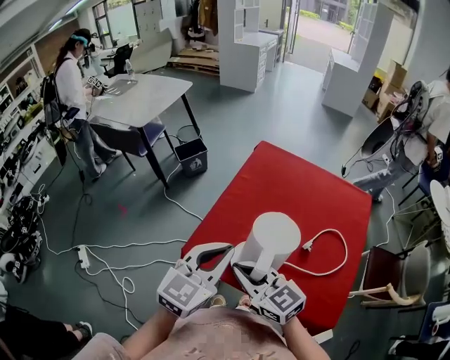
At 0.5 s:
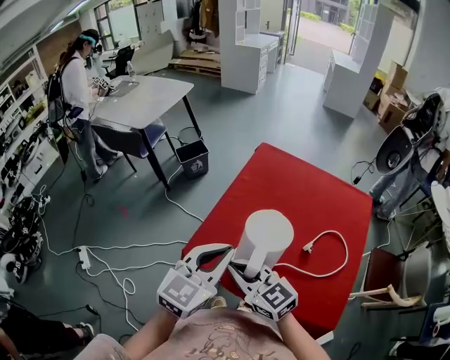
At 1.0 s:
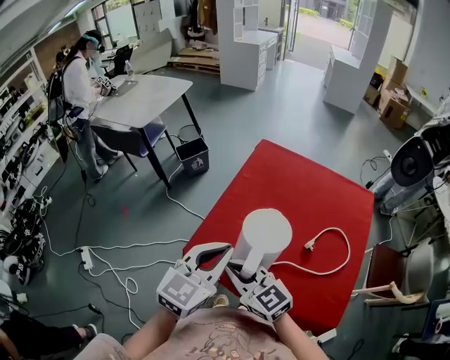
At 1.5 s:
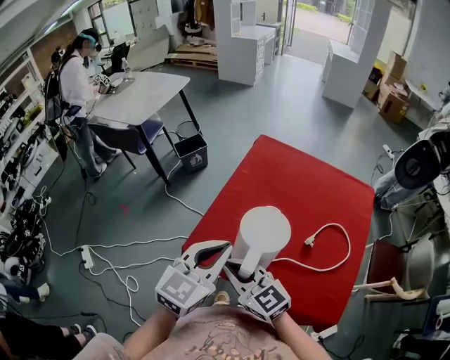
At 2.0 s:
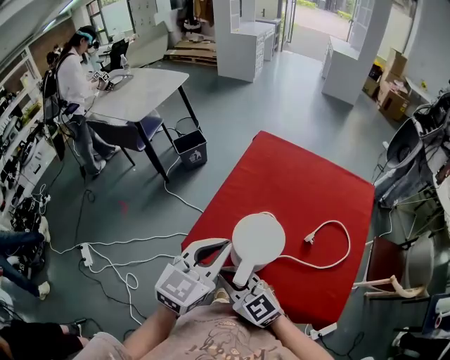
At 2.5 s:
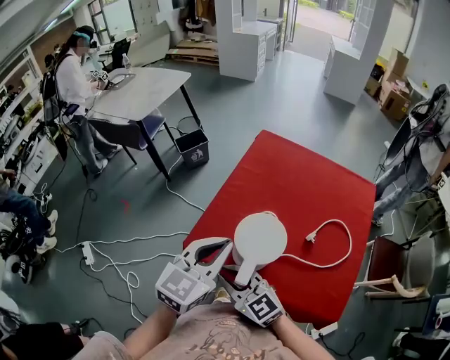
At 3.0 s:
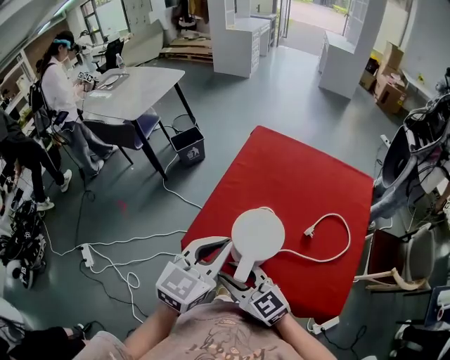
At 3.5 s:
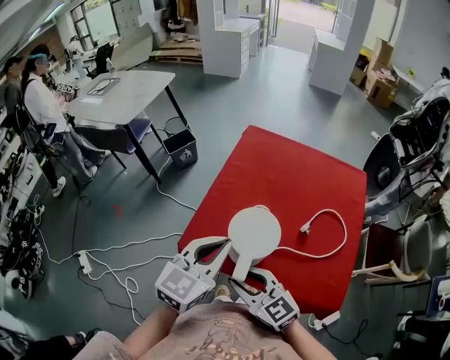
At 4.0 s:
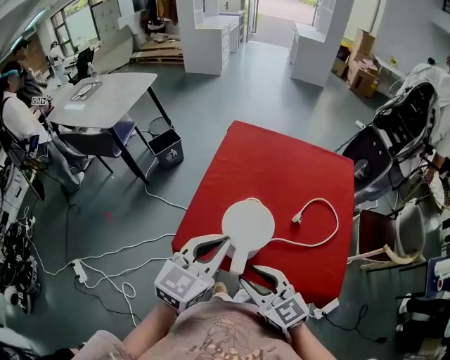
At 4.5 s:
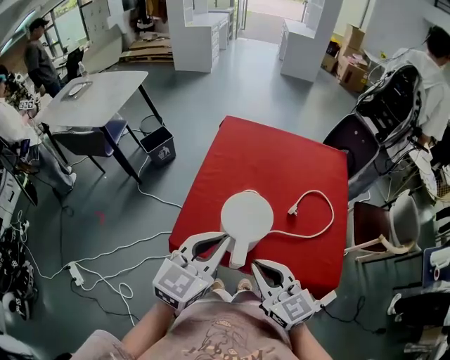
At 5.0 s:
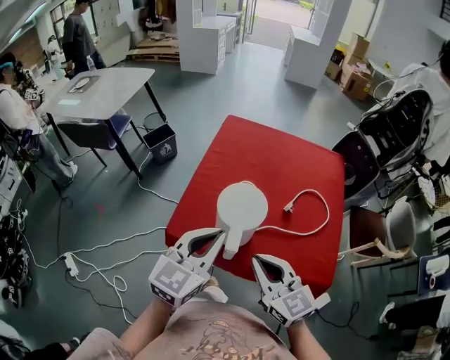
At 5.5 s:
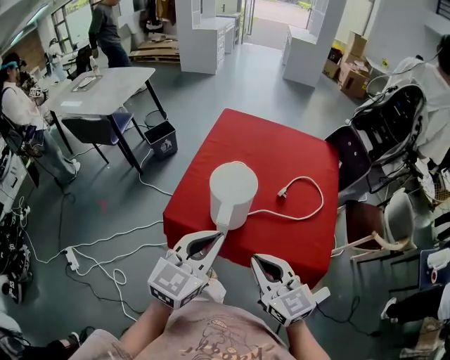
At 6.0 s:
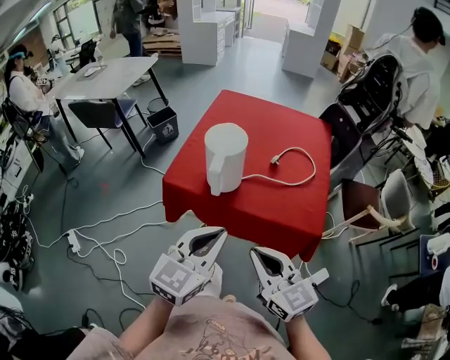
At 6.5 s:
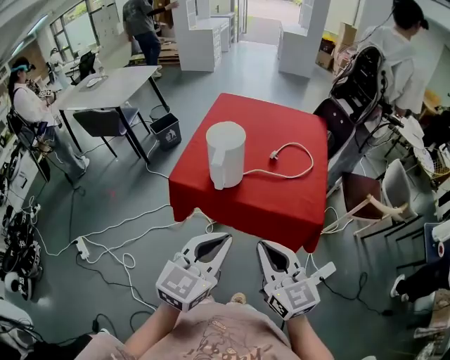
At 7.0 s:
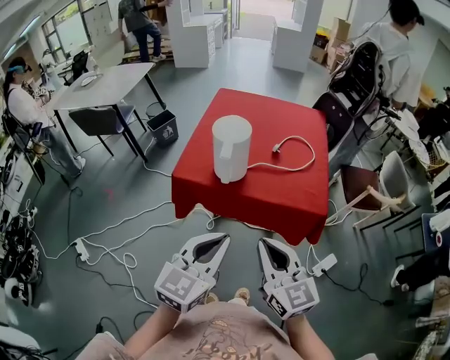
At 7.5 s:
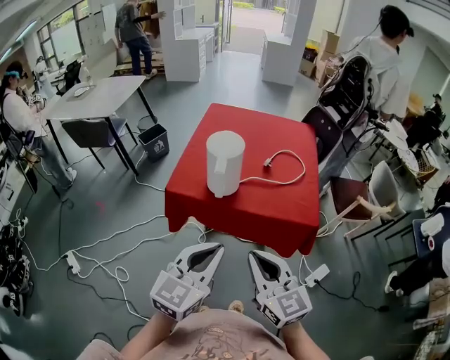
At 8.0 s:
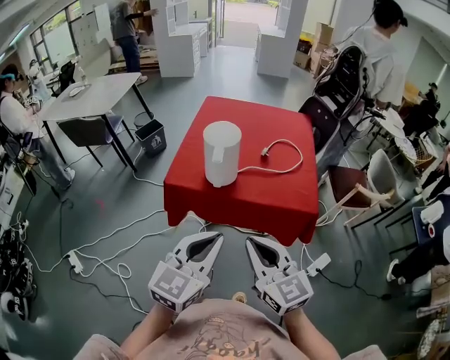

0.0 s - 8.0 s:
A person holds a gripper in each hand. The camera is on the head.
0.0 s - 2.0 s: The right gripper ends up some 5 cm from where it was.
2.0 s - 4.0 s: The right gripper is displaced to the right by approximately 10 cm, swivels about 20 degrees, and opens up.
4.0 s - 6.0 s: The left gripper heads backward, covering approximately 25 cm. The right gripper is displaced backward and to the right by about 20 cm, and closes its fingers.
6.0 s - 8.0 s: Both grippers move backward, about 5 cm.

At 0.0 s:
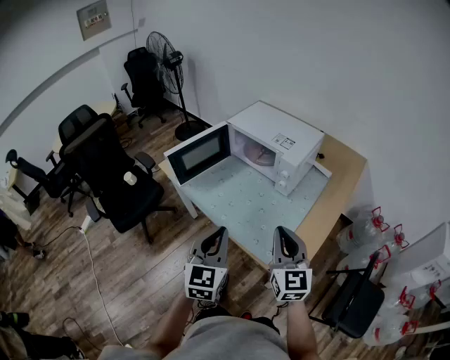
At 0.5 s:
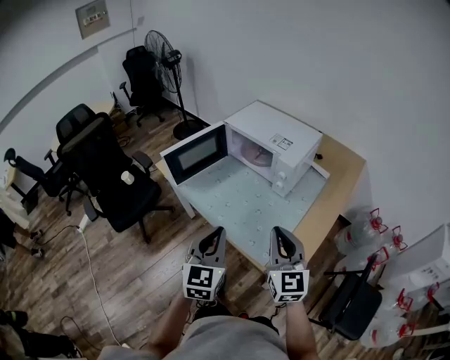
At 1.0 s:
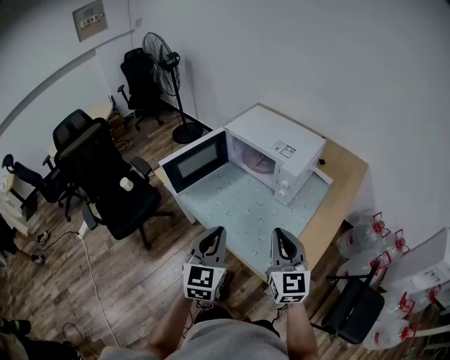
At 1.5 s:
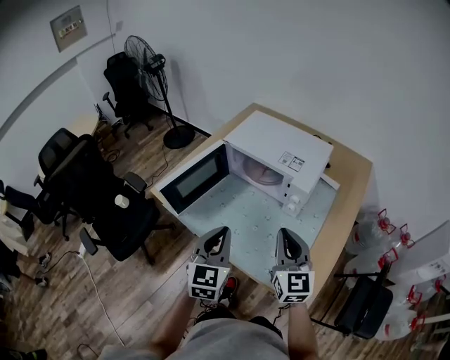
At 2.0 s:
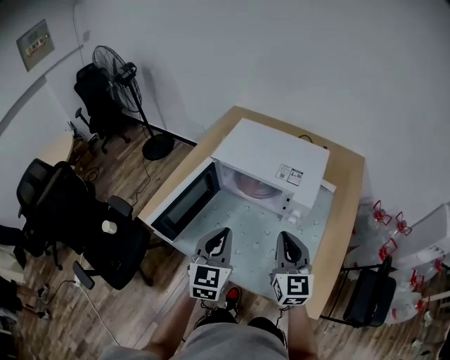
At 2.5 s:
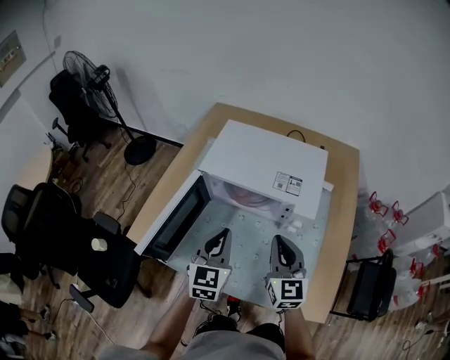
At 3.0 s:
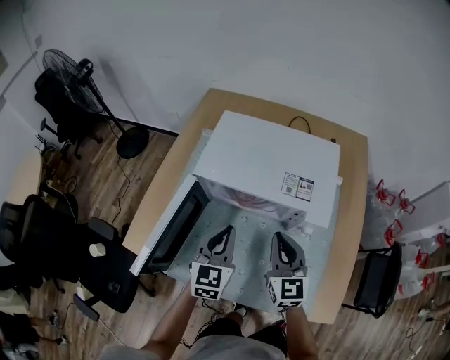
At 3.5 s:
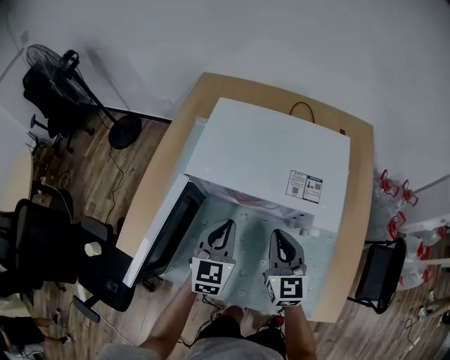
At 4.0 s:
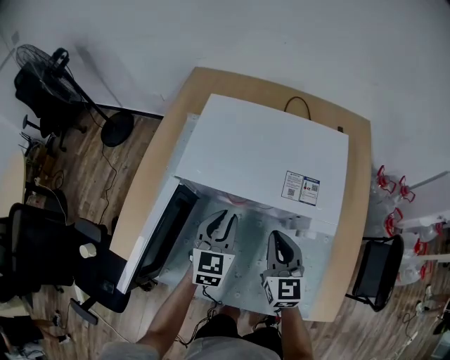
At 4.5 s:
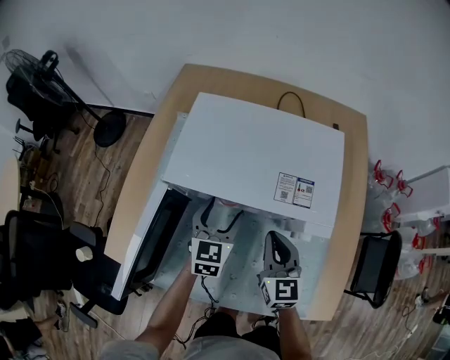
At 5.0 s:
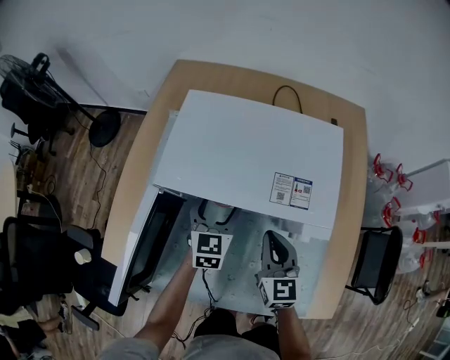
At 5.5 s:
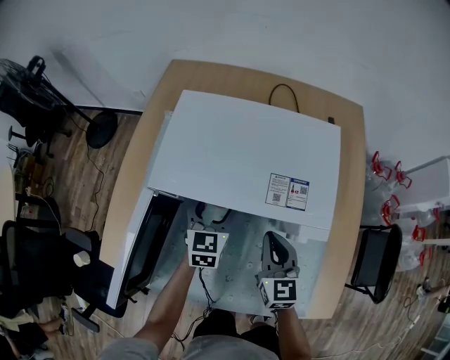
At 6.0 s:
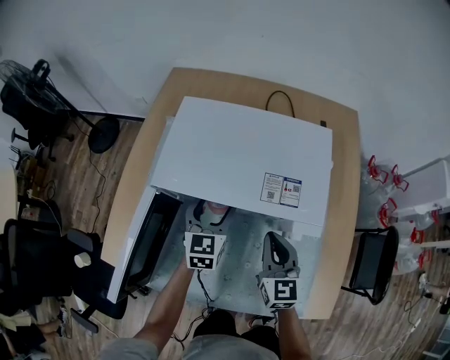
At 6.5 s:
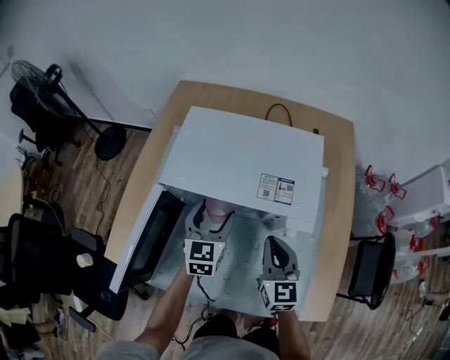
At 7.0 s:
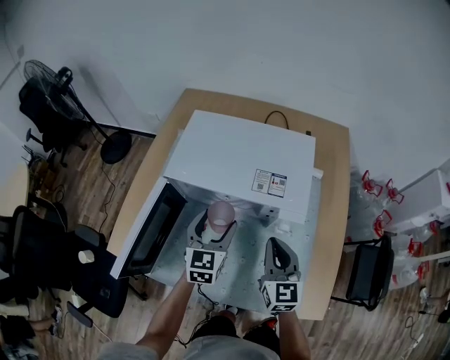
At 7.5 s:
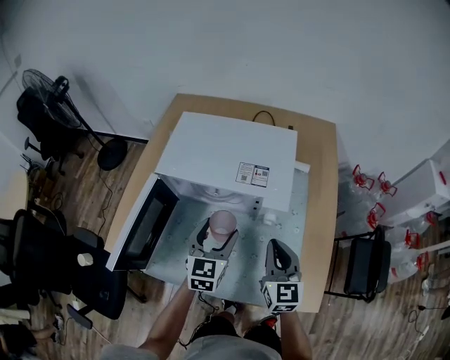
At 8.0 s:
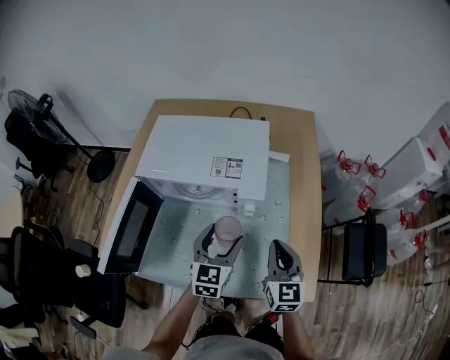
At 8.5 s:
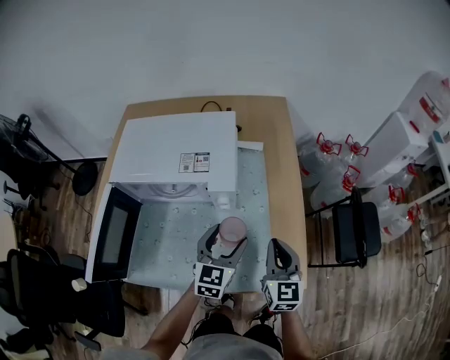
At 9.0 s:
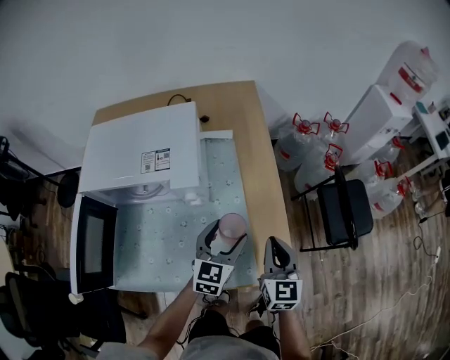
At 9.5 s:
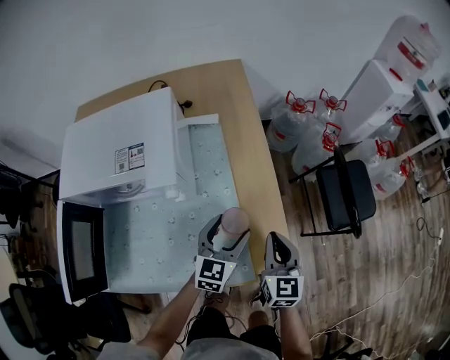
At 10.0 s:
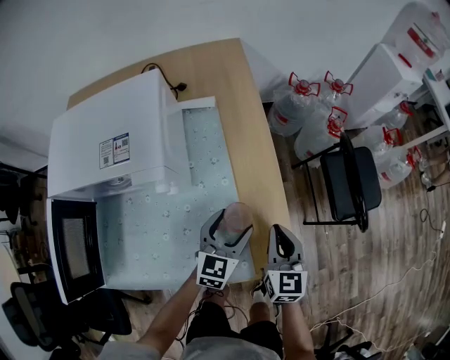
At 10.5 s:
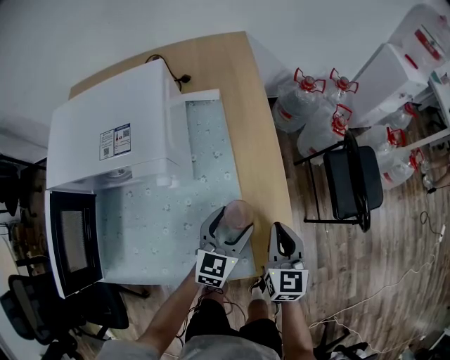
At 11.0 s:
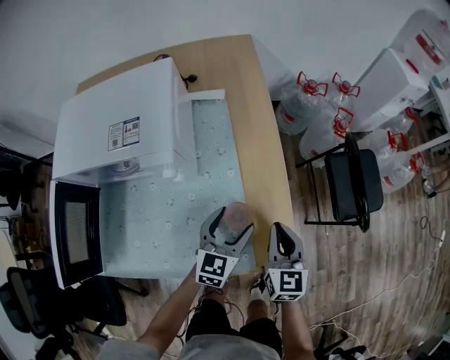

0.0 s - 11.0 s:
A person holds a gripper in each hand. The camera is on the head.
0.0 s - 2.0 s: Both grippers move forward, approximately 25 cm.
2.0 s - 3.5 s: The grippers both shift forward and downward by some 20 cm.
3.5 s - 5.5 s: The right gripper moves downward, roughly 5 cm. Meanwhile the left gripper is displaced forward and downward by about 10 cm, and opens its fingers.
5.5 s - 7.5 s: Both grippers travel together backward, upward and to the right, roughly 15 cm.
7.5 s - 9.0 s: Both grippers move to the right, roughly 25 cm. The left gripper rotates approximately 30 degrees, while the right gripper changes its angle by approximately 20 degrees.
9.0 s - 11.0 s: The two grippers go about 10 cm downward.

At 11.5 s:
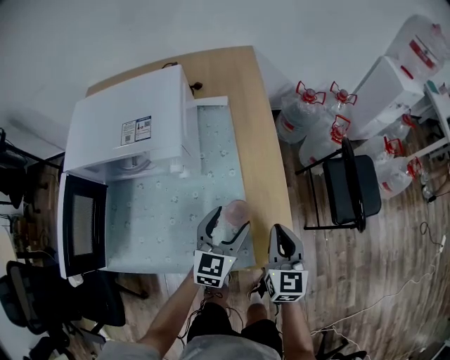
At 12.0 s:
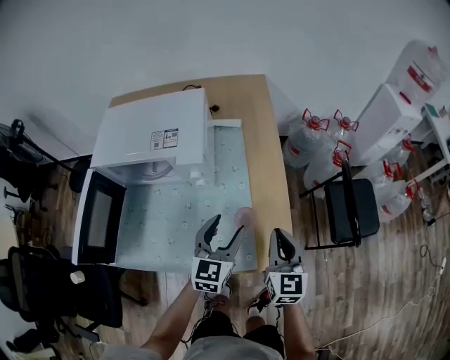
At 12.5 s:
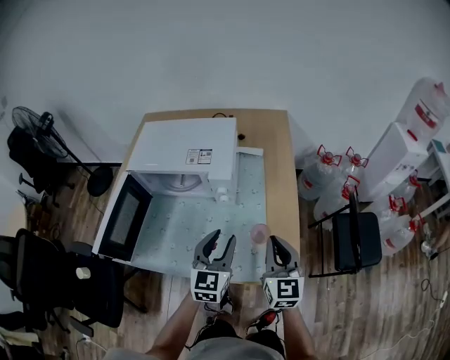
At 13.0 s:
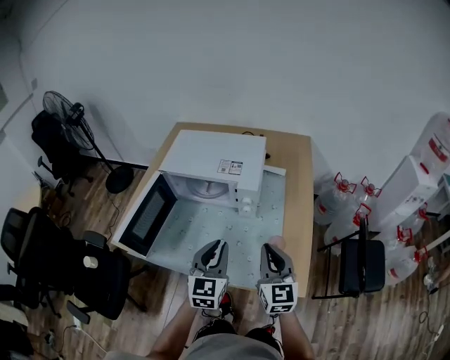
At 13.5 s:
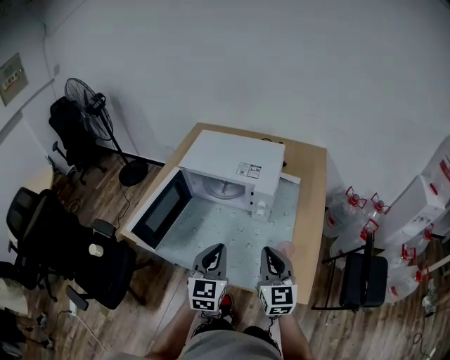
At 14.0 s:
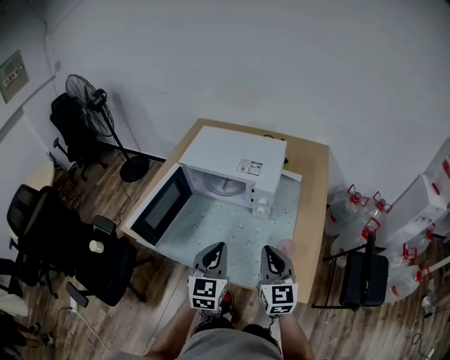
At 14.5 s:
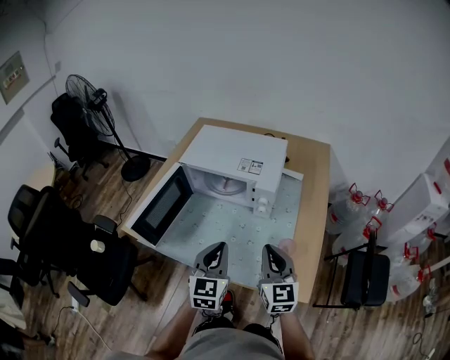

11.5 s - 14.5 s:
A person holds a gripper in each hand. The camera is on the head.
11.5 s - 13.0 s: The left gripper shifts by some 25 cm, swivels about 30 degrees, and closes its fingers. Meanwhile the right gripper travels upward by about 15 cm, and turns by about 30 degrees.
13.0 s - 14.5 s: The grippers make only small movements.

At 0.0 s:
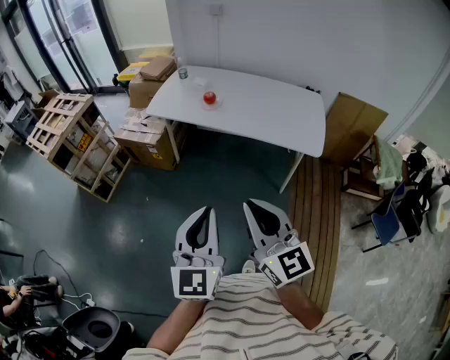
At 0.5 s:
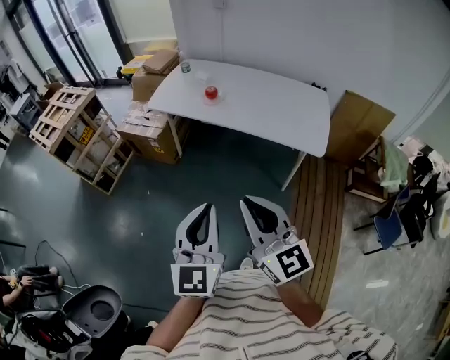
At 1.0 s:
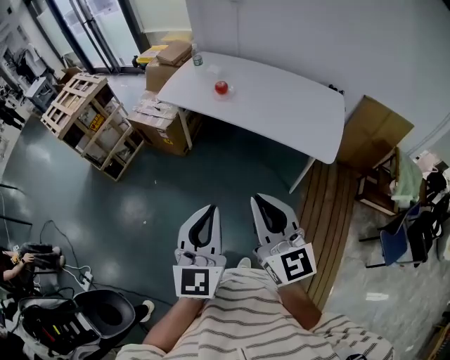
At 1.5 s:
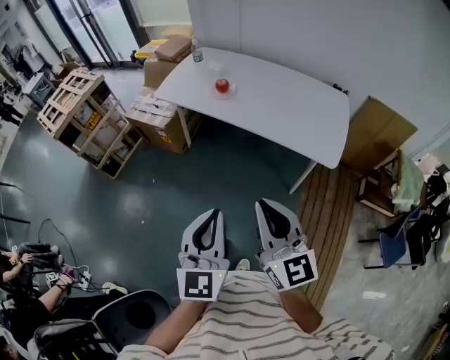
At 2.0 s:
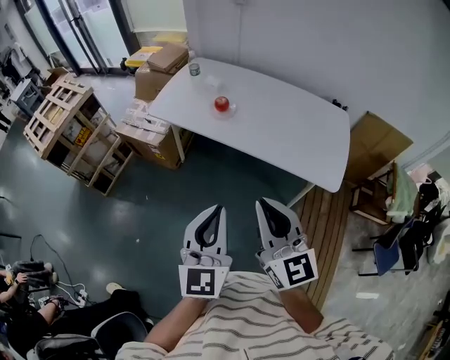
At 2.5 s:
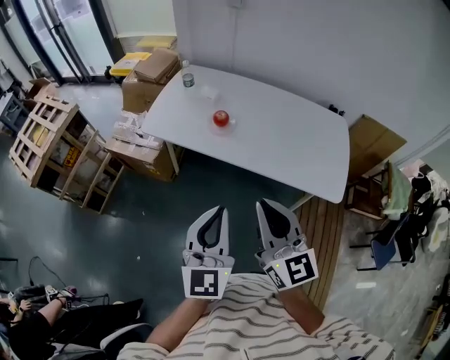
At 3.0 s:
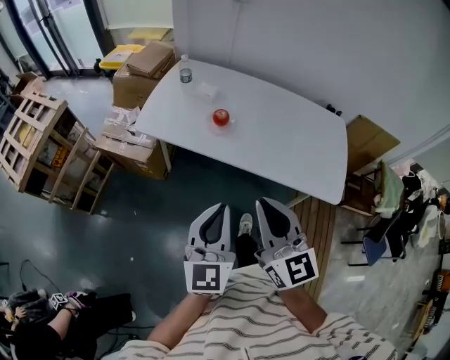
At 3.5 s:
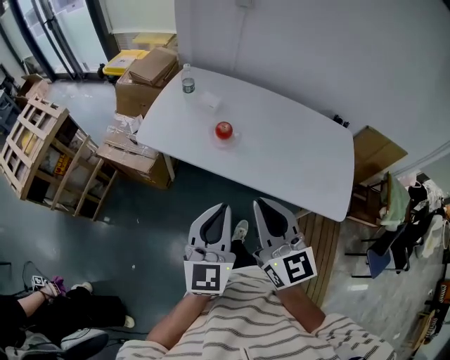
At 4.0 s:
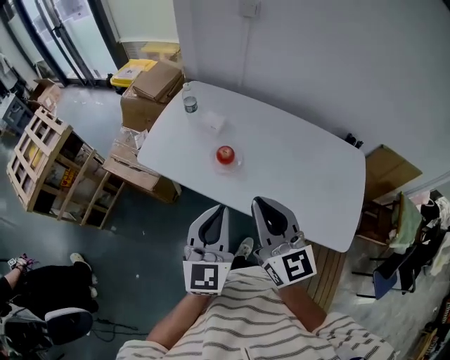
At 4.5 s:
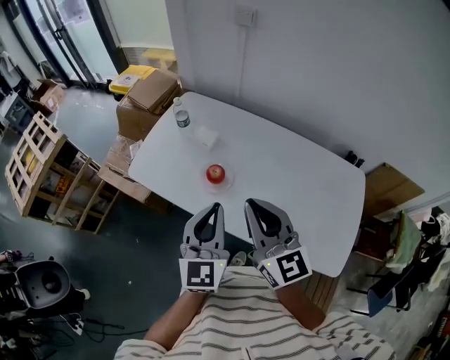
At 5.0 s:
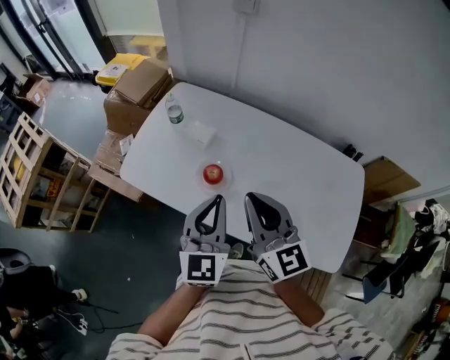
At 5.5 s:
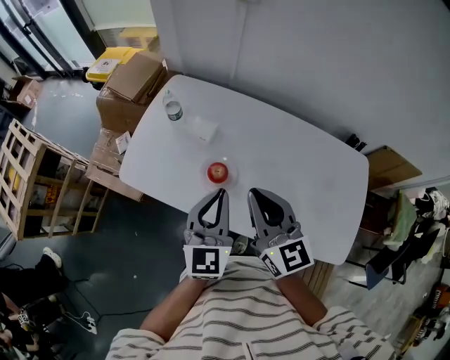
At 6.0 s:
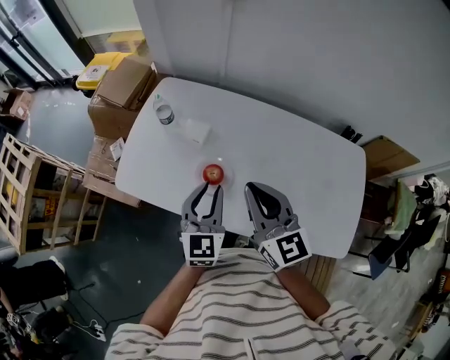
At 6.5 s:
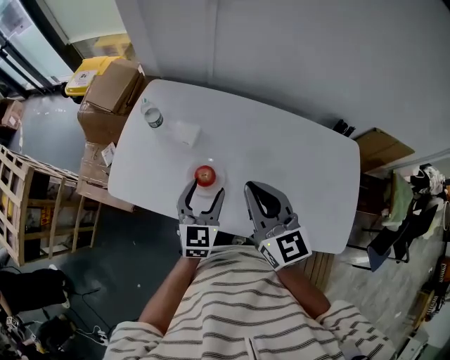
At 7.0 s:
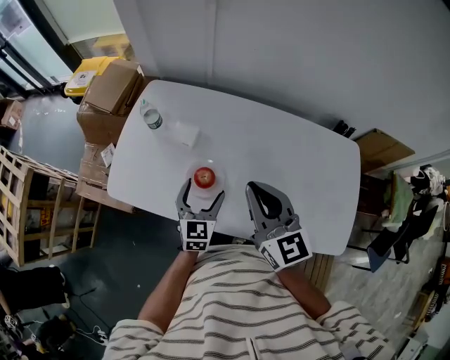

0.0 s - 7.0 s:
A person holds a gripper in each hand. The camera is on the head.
0.0 s - 2.0 s: The two grippers go about 20 cm forward.
2.0 s - 3.5 s: Both grippers travel together forward, about 20 cm.
3.5 s - 5.0 s: The two grippers go some 25 cm forward.
5.0 s - 7.0 s: The left gripper travels downward and forward by some 20 cm, and opens its fingers; the right gripper goes approximately 5 cm forward.
